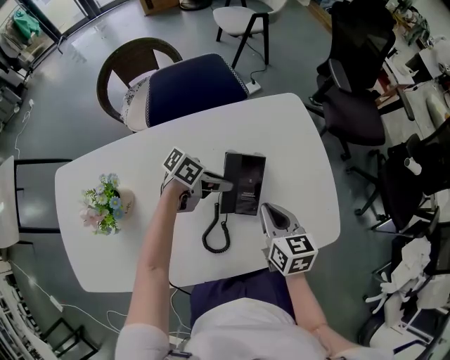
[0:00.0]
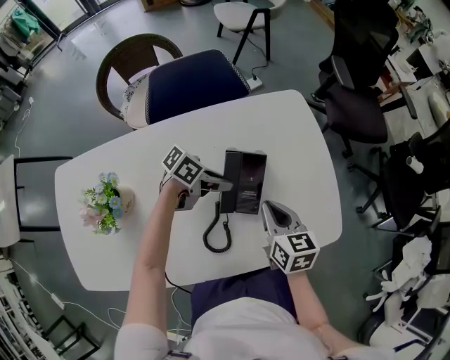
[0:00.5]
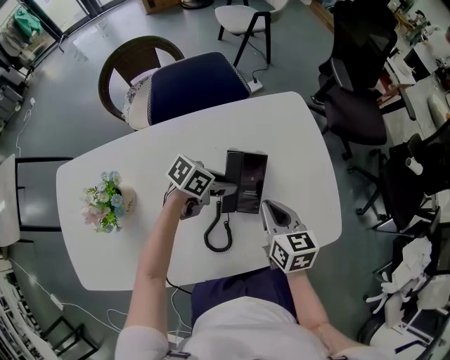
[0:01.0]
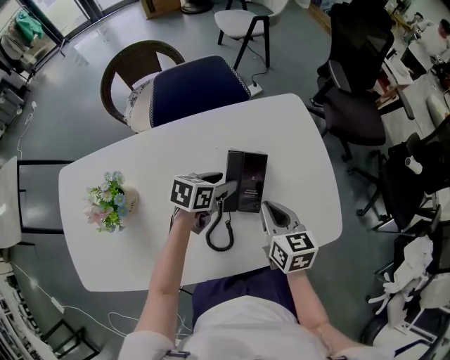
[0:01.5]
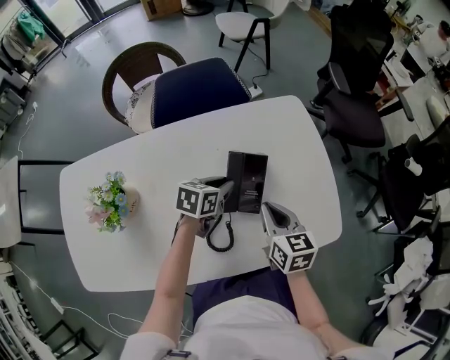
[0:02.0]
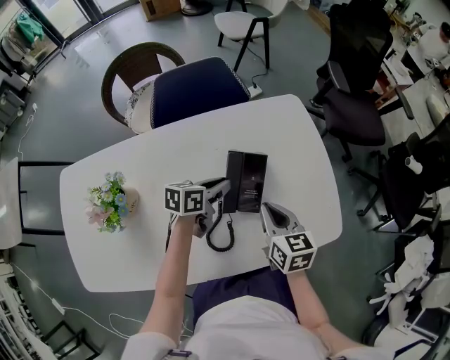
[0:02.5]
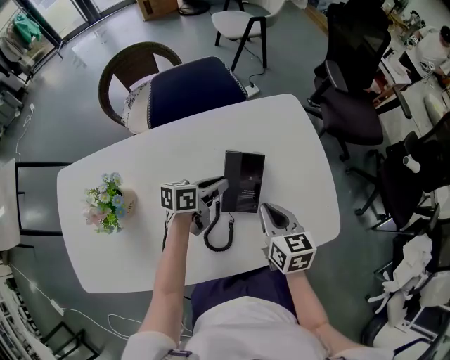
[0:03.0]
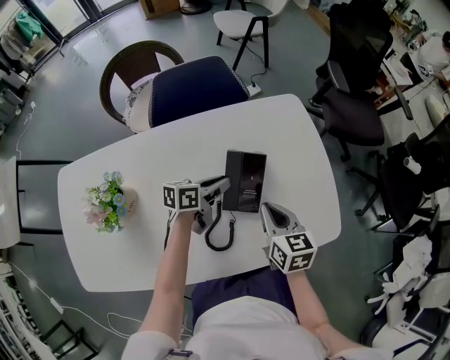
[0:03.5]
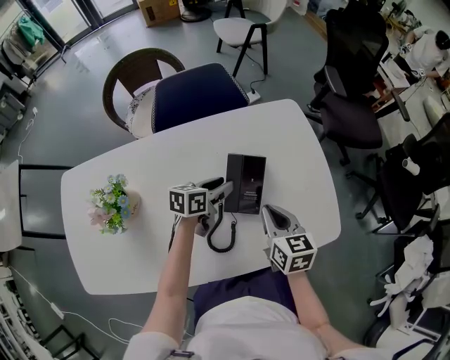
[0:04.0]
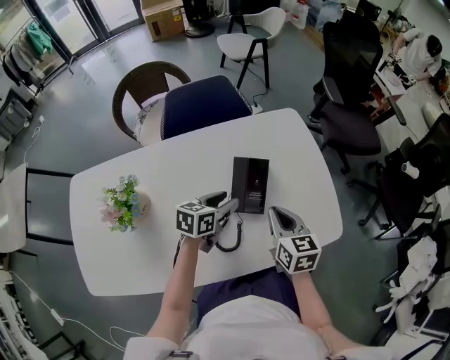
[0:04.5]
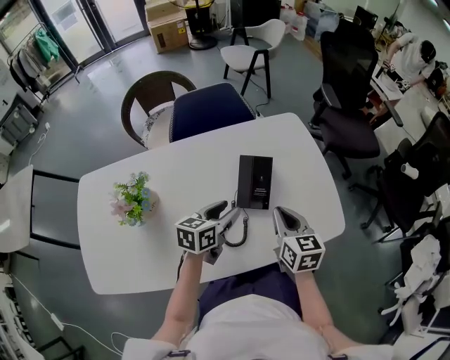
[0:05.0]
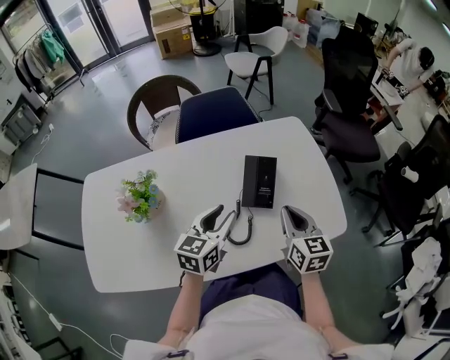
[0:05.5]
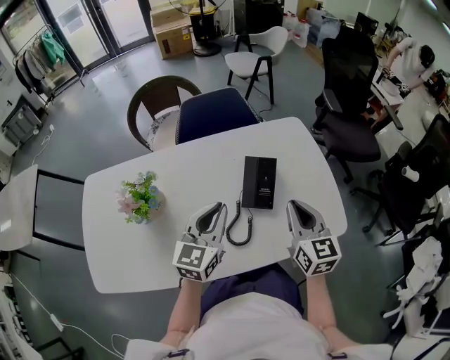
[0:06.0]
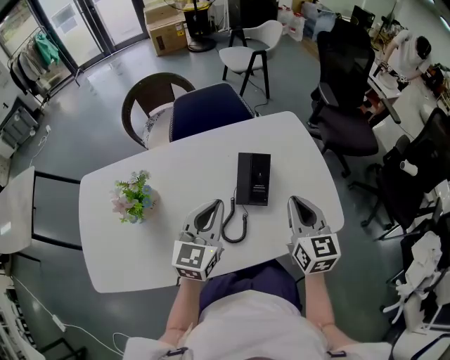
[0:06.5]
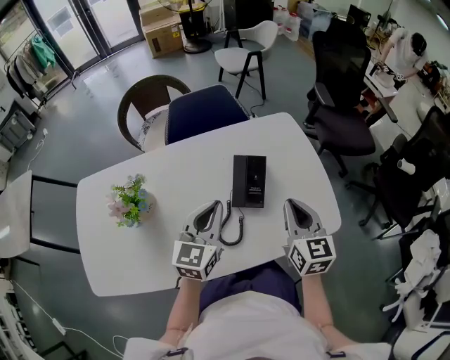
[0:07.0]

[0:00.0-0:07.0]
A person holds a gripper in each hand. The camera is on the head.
0:00.0 to 0:02.0: The left gripper turns by some 40 degrees, and opens, then closes again.
0:02.0 to 0:03.5: The left gripper turns by approximately 30 degrees.
0:03.5 to 0:05.0: The left gripper moves backward and upward, roughly 15 cm, turns by about 20 degrees, and opens its fingers. Meanwhile the right gripper moves about 5 cm.
0:05.0 to 0:07.0: The right gripper goes about 5 cm upward. The left gripper heads upward, covering some 10 cm, swivels approximately 30 degrees, and closes its fingers.

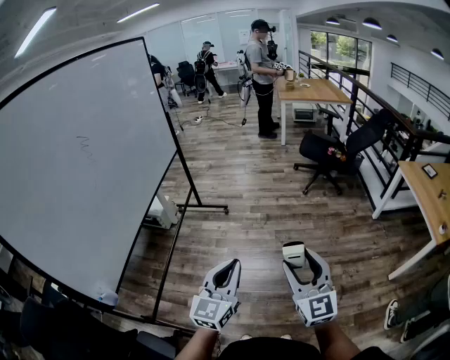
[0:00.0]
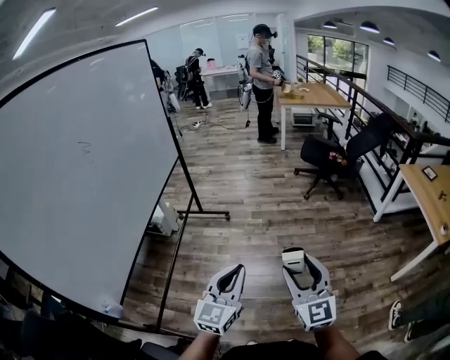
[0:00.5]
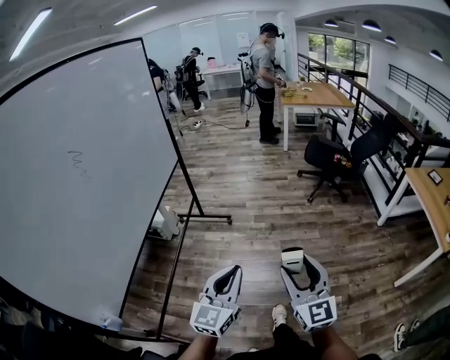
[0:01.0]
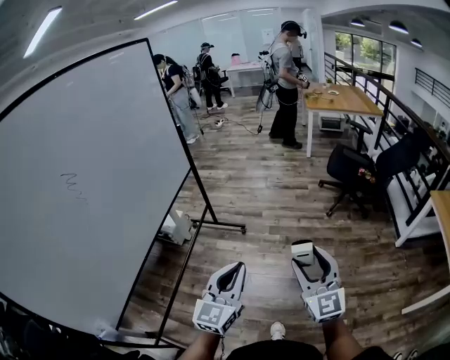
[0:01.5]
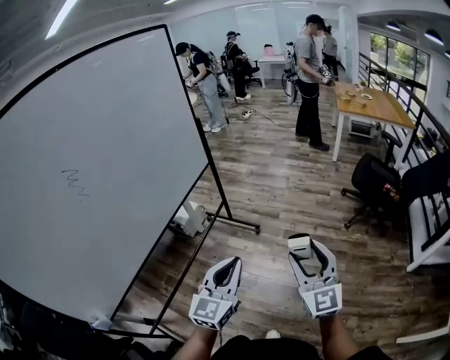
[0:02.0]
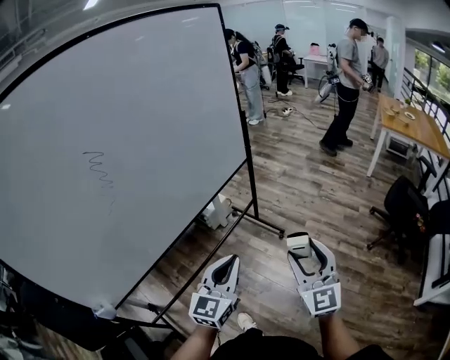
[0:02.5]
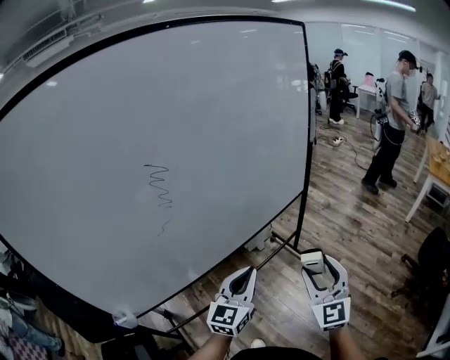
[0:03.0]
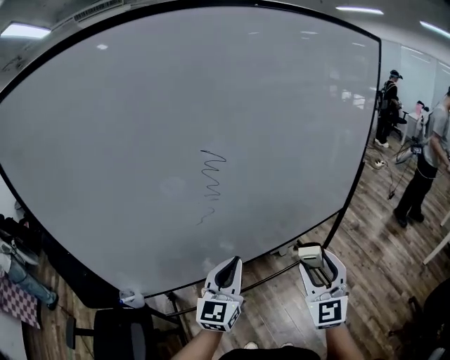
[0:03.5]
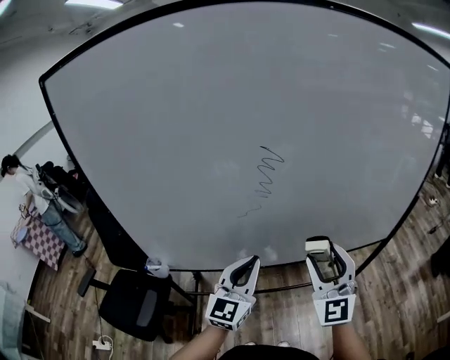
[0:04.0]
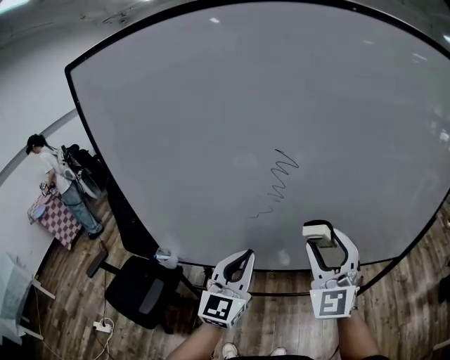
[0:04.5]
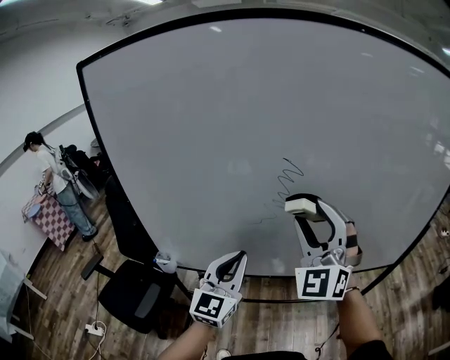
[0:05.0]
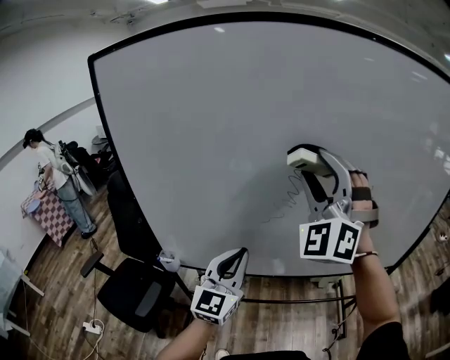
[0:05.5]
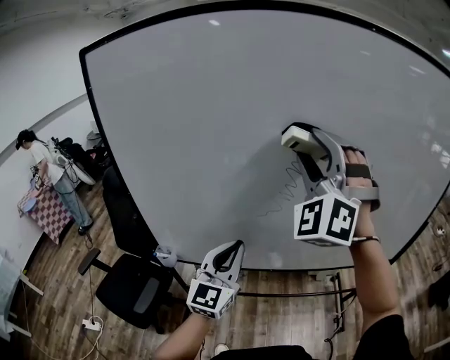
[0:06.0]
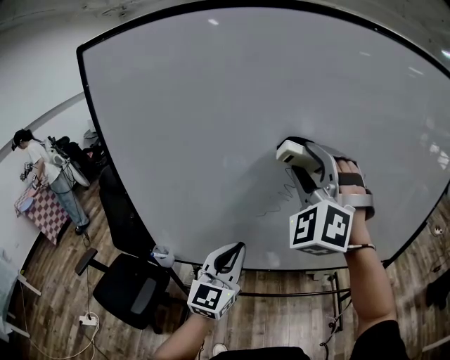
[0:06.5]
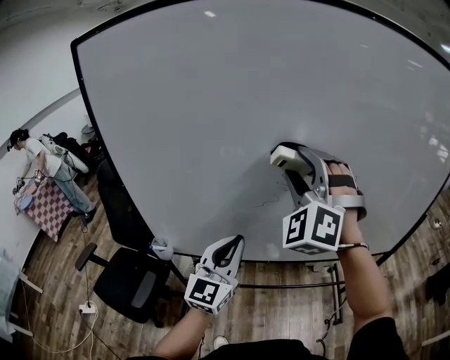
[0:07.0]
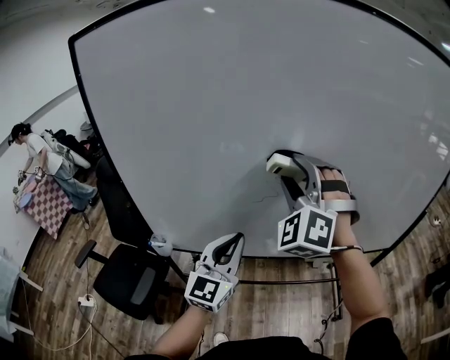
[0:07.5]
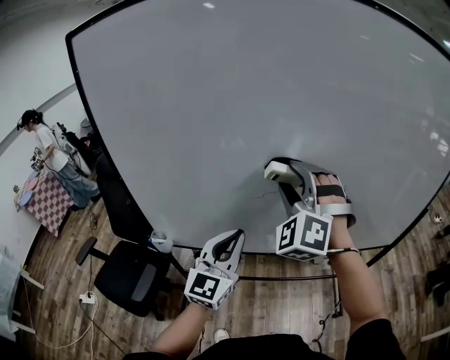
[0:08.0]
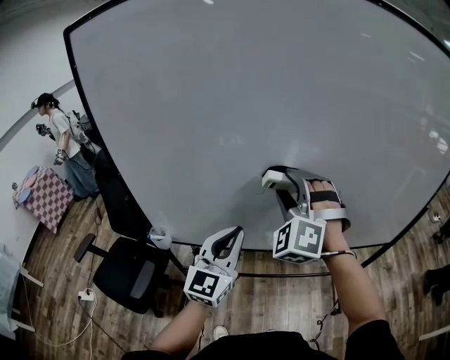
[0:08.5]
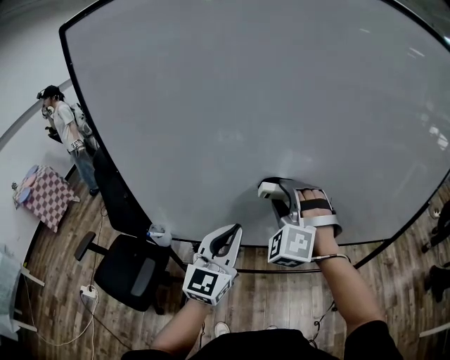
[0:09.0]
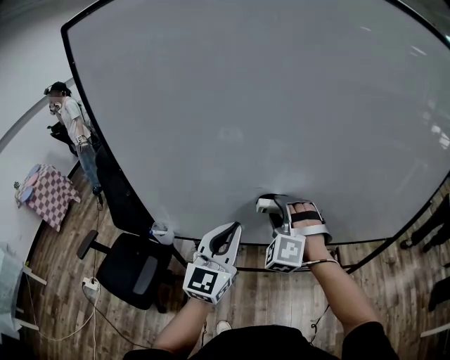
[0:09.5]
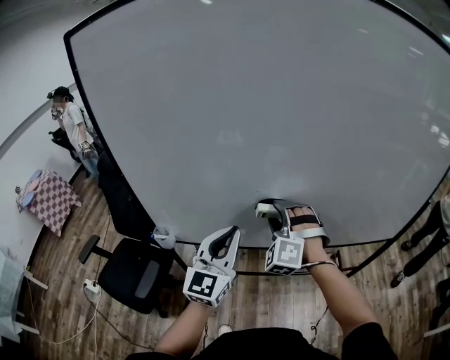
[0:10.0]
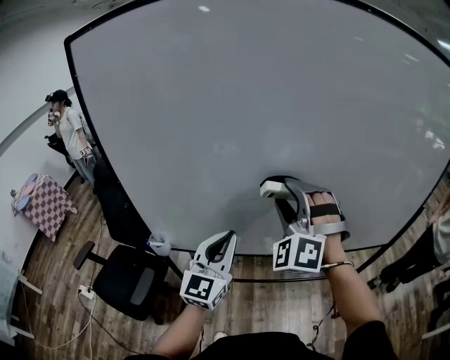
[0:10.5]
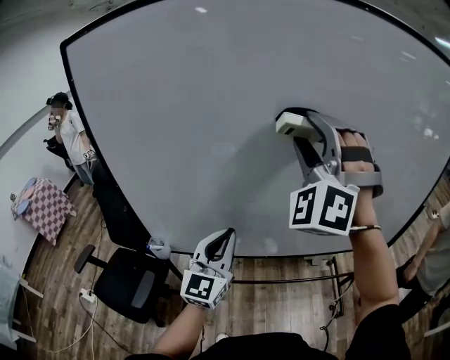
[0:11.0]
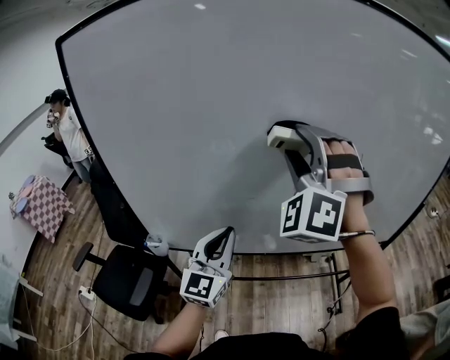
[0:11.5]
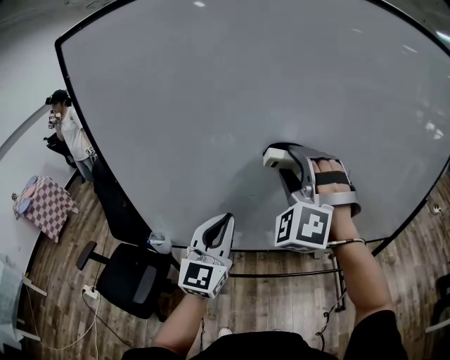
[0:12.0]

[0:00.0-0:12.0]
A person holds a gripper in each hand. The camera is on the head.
0:00.0 to 0:02.0: The grippers both shift forward by roughly 35 cm.
0:02.0 to 0:04.0: The pair of grippers is taken about 50 cm. The left gripper swivels about 60 degrees; the right gripper changes its angle by approximately 60 degrees.
0:04.0 to 0:06.0: The left gripper heads to the left, covering approximately 10 cm, while the right gripper travels upward, to the left and forward by roughly 30 cm, and rolls counterclockwise, seen from behind, by about 50 degrees.
0:06.0 to 0:08.0: The right gripper moves downward, some 15 cm.
0:08.0 to 0:10.0: The right gripper shifts approximately 15 cm downward.
0:10.0 to 0:12.0: The right gripper shifts about 20 cm upward.

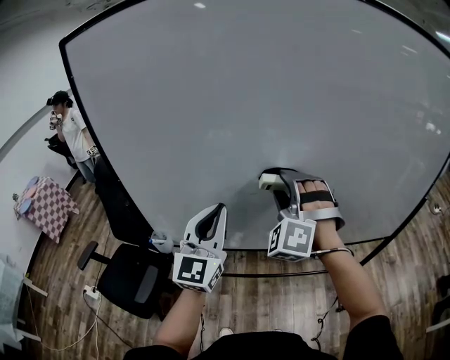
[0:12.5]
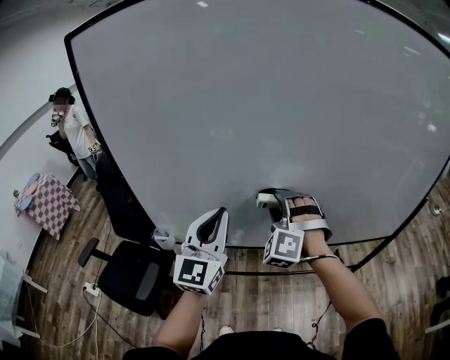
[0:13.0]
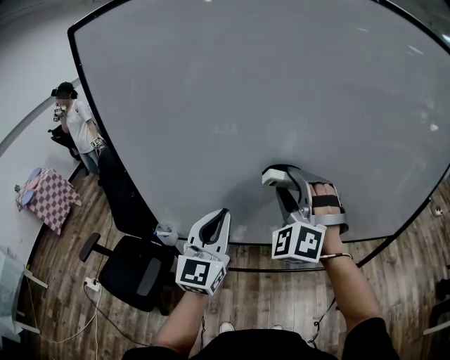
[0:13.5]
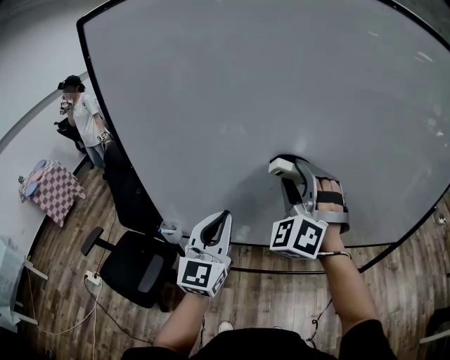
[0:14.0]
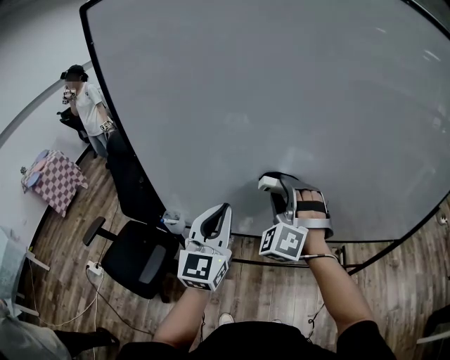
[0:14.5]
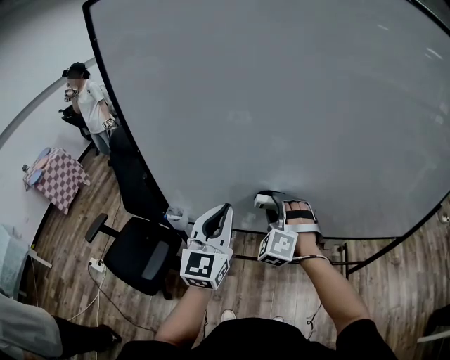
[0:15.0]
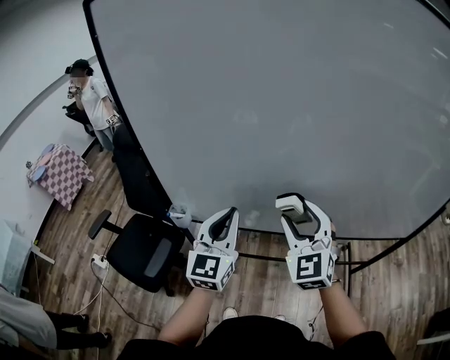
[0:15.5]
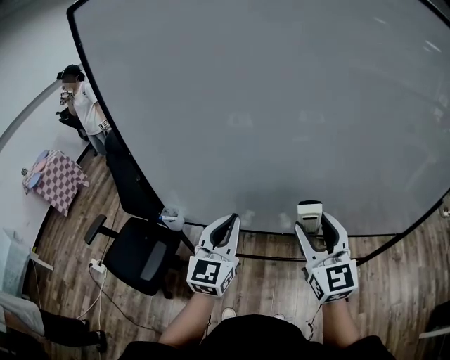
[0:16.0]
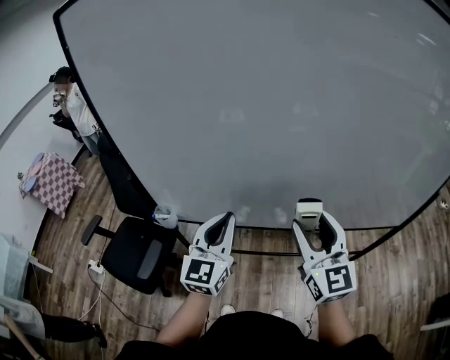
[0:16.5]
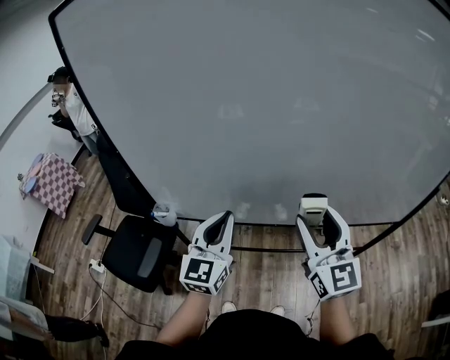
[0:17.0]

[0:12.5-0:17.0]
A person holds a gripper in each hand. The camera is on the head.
0:12.5 to 0:14.5: The right gripper goes up and down, approximately 10 cm each way, reversing 2 times, while the left gripper goes some 5 cm downward.
0:14.5 to 0:17.0: The left gripper is displaced downward by roughly 5 cm, while the right gripper is displaced to the right and backward by roughly 15 cm, and rotates around the line of its fingers by about 70 degrees, clockwise from behind.

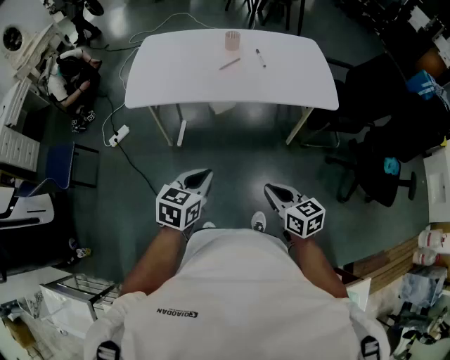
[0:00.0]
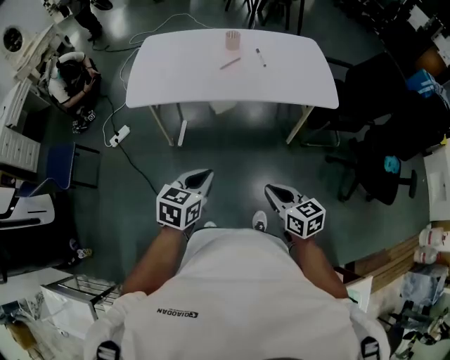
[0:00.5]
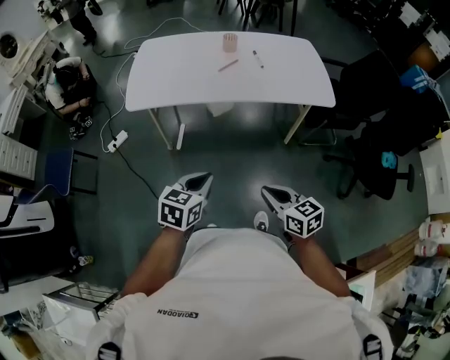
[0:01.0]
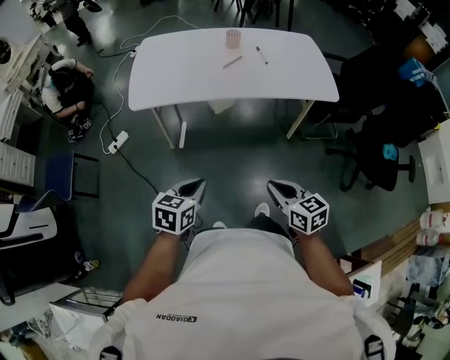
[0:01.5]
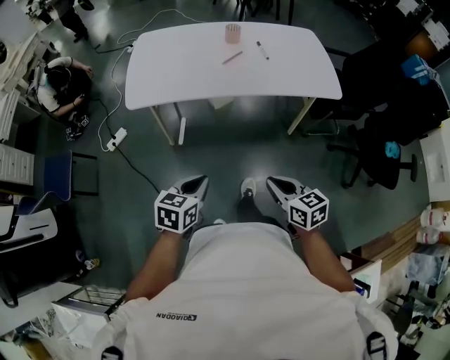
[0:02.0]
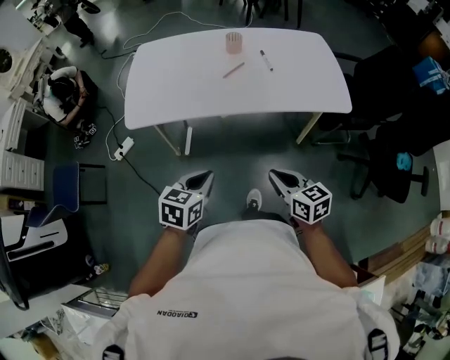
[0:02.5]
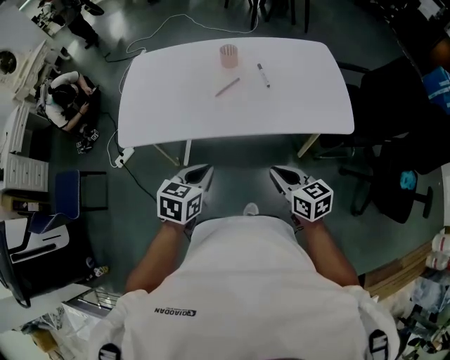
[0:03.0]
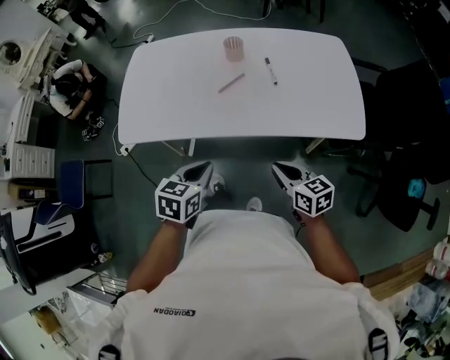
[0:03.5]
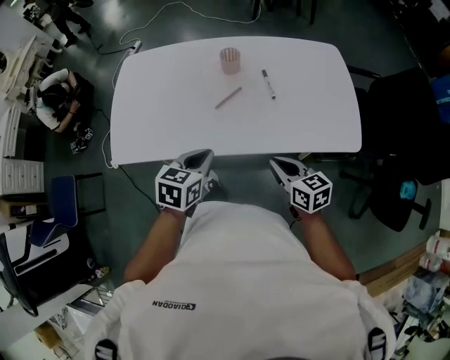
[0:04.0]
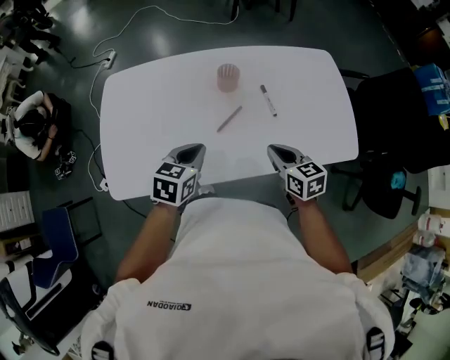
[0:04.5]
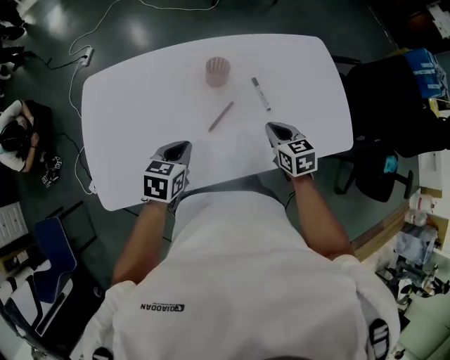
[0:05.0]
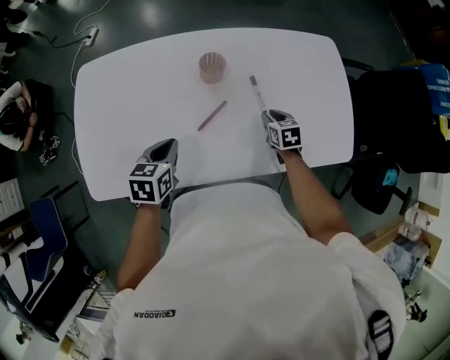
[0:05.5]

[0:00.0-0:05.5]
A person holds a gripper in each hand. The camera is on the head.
0:00.0 to 0:02.0: The two grippers go roughly 10 cm to the left.
0:02.0 to 0:03.5: Both grippers travel together forward and to the right, some 35 cm.
0:03.5 to 0:05.5: The right gripper shifts approximately 40 cm forward and downward, changes its angle by roughly 30 degrees, and opens its fingers. The left gripper shifts some 30 cm forward.
